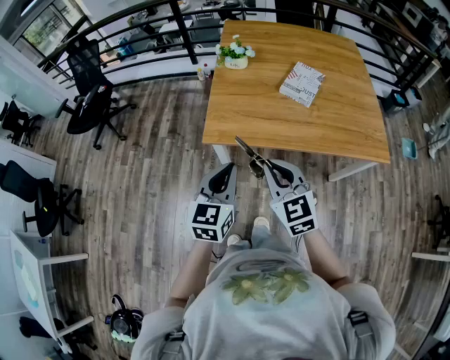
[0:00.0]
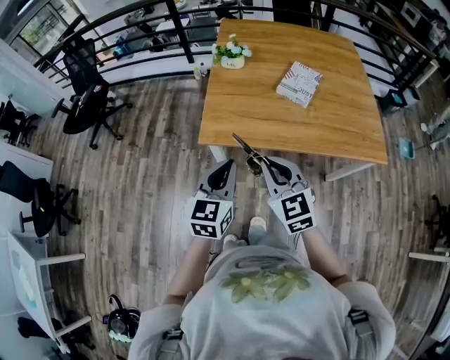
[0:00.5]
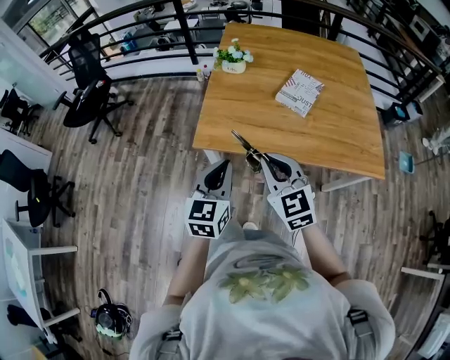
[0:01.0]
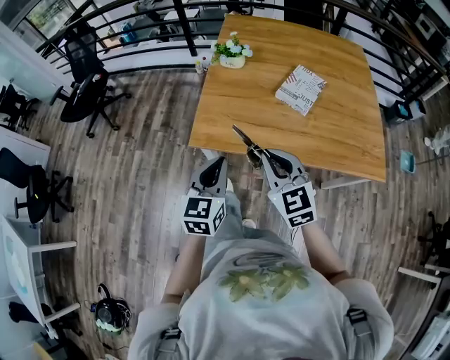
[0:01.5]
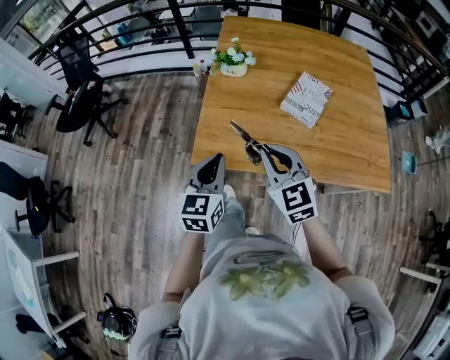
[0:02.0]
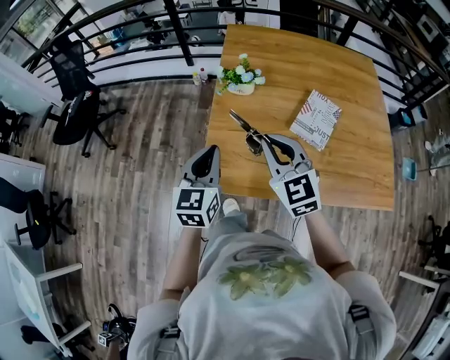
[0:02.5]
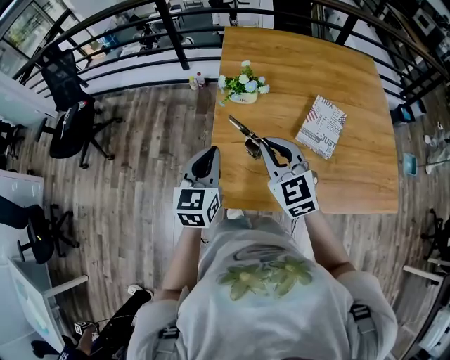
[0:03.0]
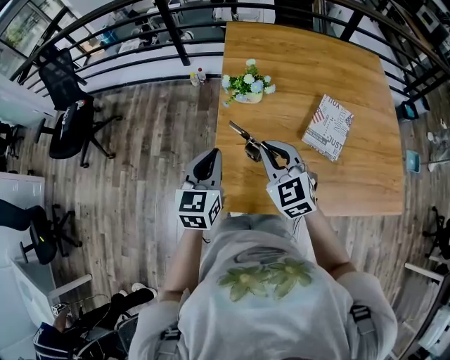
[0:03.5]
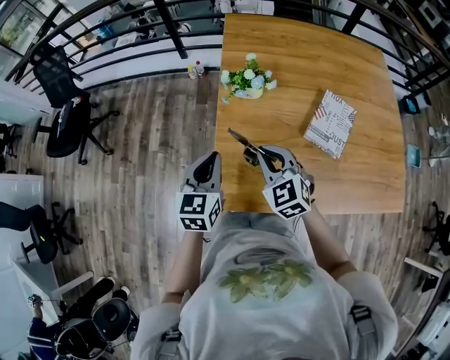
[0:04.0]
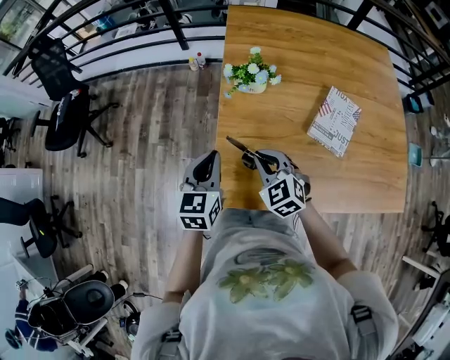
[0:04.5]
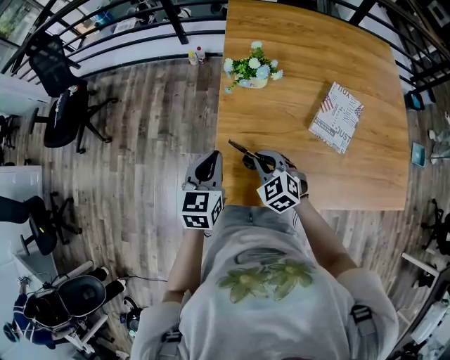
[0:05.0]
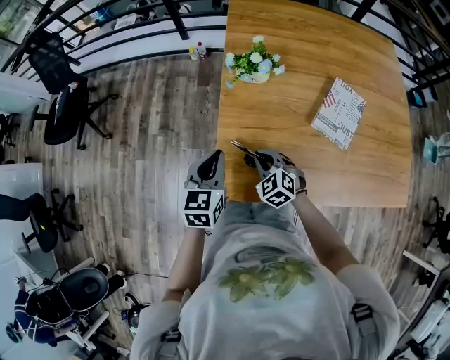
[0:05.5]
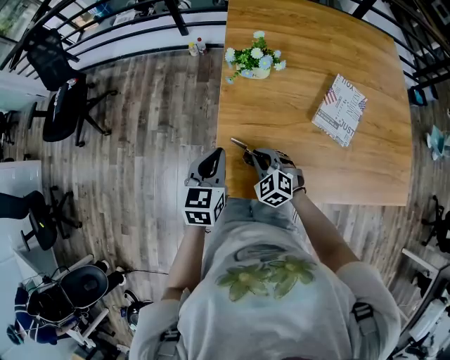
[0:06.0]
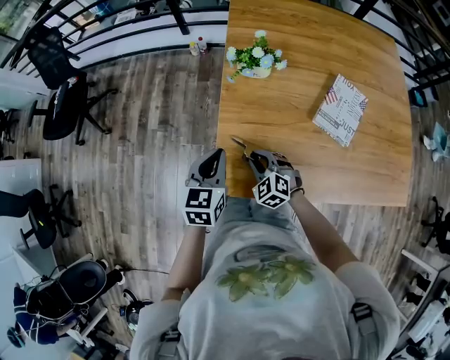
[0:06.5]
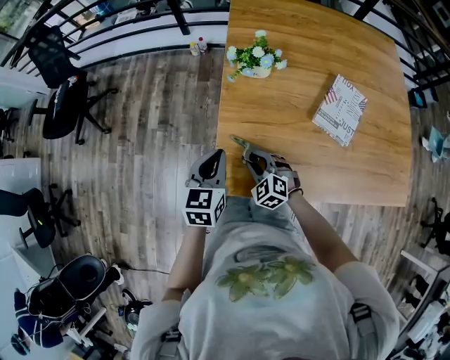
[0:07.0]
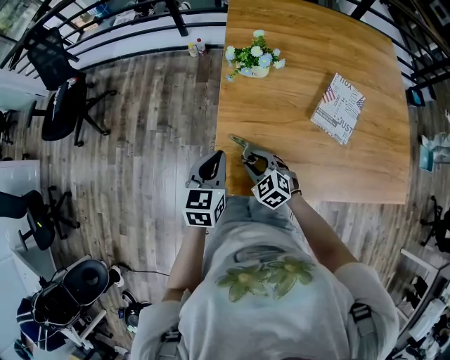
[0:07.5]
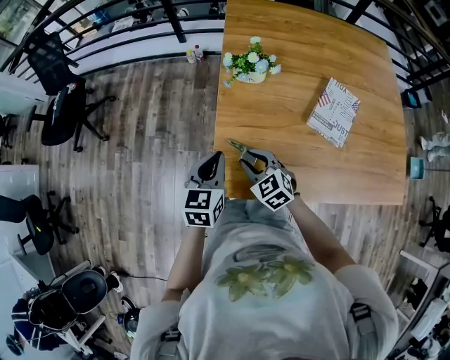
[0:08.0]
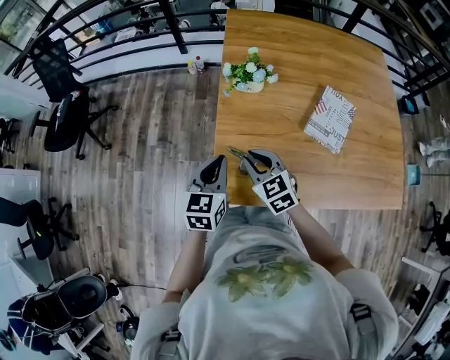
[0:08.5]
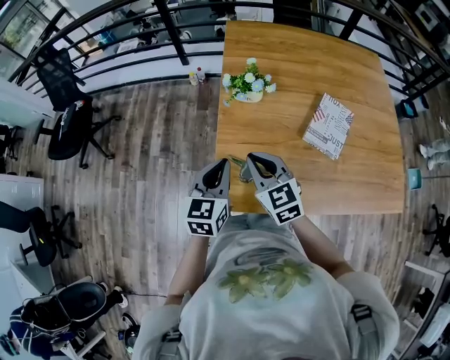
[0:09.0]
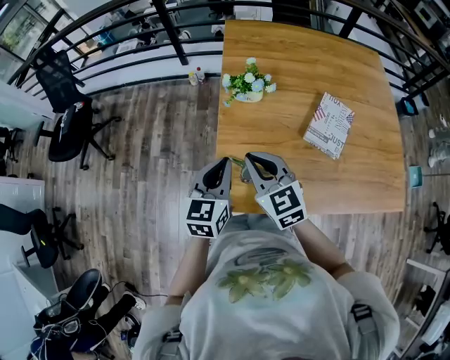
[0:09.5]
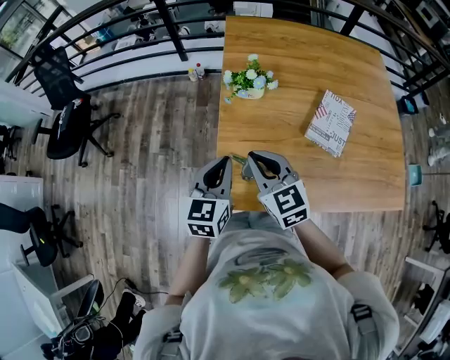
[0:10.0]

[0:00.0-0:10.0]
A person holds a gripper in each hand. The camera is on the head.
0:00.0 to 0:02.0: Both grippers travel together forward, some 15 cm.
0:02.0 to 0:04.0: The right gripper moves forward and downward, some 20 cm. Meanwhile the left gripper travels forward by some 20 cm.
0:04.0 to 0:06.0: The right gripper travels downward by about 15 cm. The left gripper goes roughly 5 cm downward.
0:06.0 to 0:08.0: The right gripper shifts roughly 5 cm upward, and opens up.
0:08.0 to 0:10.0: The right gripper is displaced upward by some 15 cm, rotates roughly 20 degrees, and closes up. The left gripper goes about 5 cm upward.

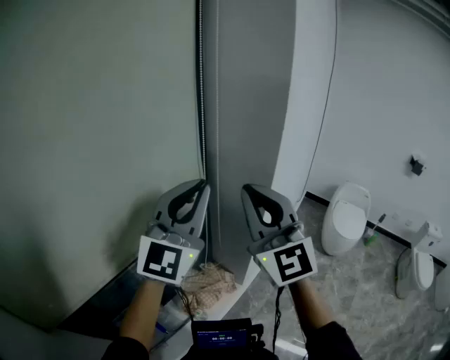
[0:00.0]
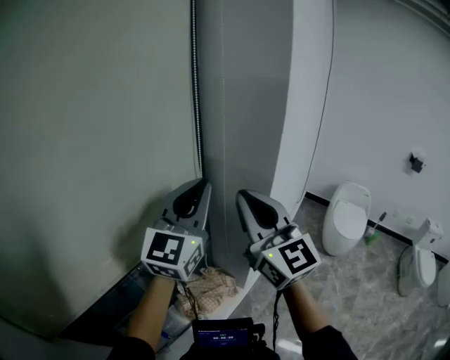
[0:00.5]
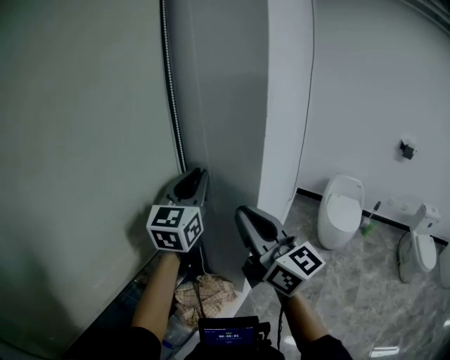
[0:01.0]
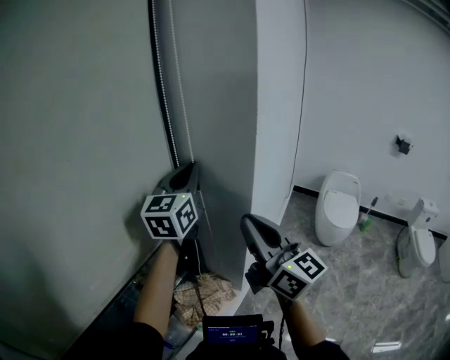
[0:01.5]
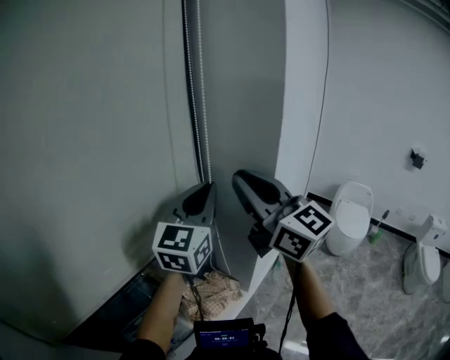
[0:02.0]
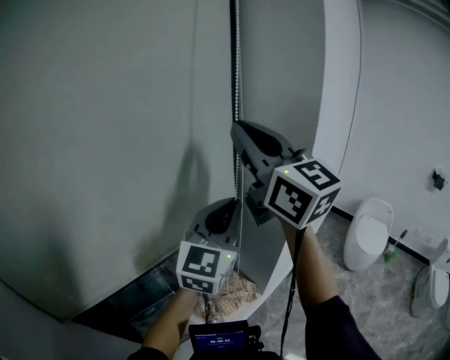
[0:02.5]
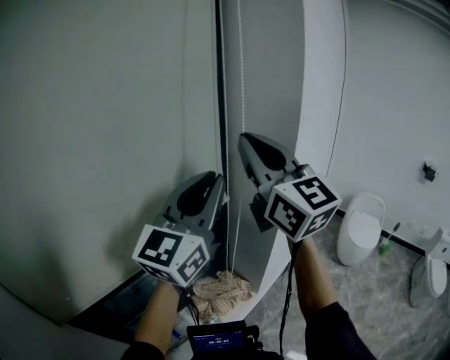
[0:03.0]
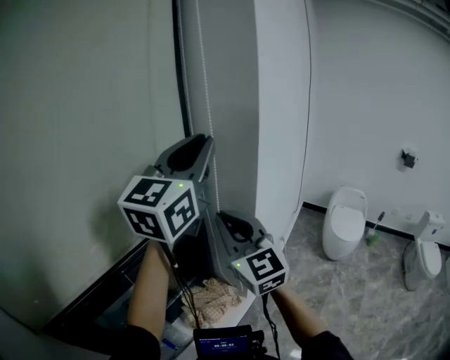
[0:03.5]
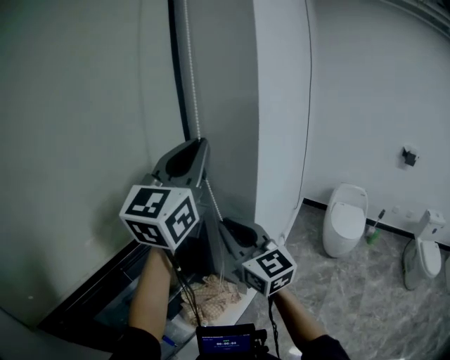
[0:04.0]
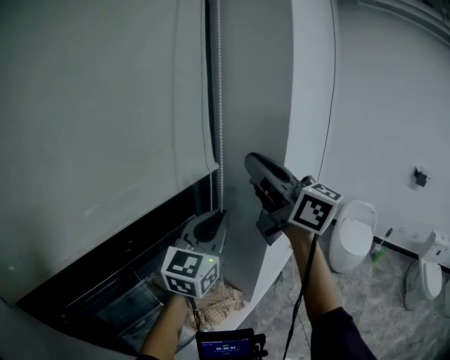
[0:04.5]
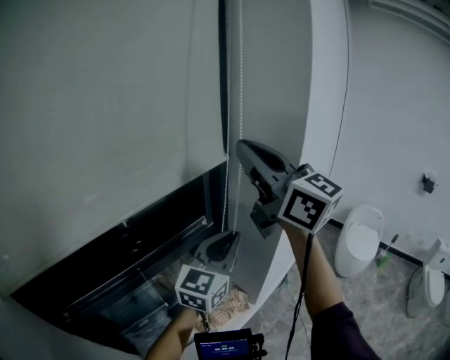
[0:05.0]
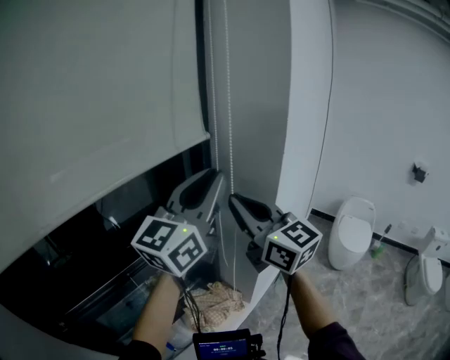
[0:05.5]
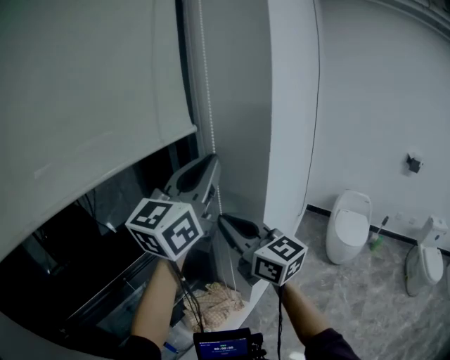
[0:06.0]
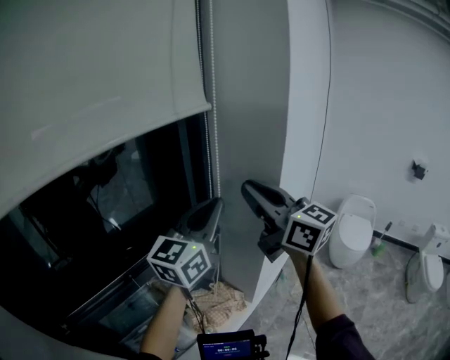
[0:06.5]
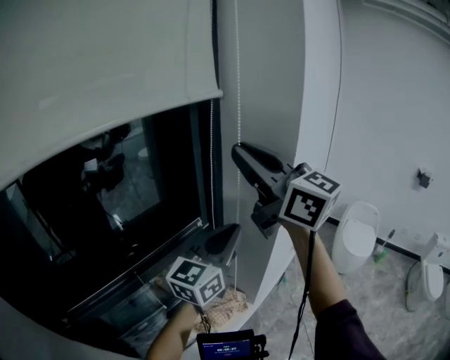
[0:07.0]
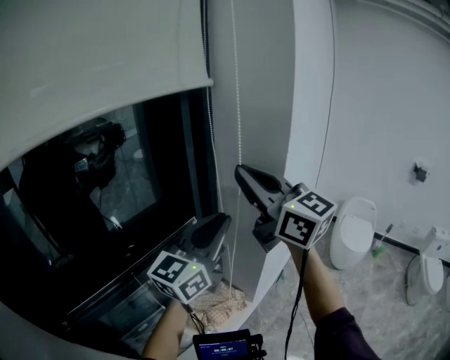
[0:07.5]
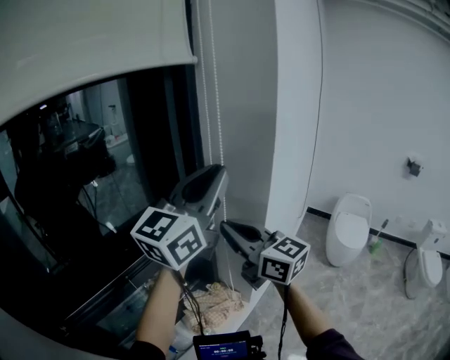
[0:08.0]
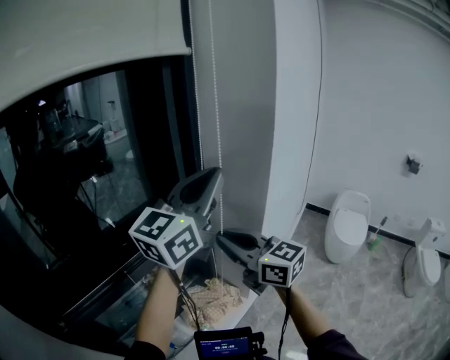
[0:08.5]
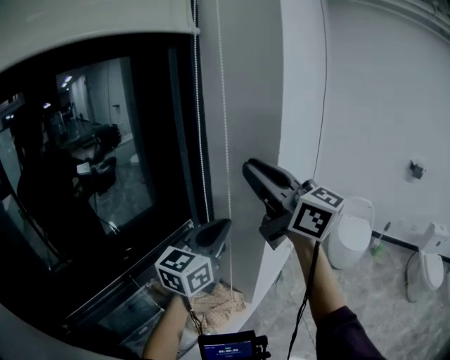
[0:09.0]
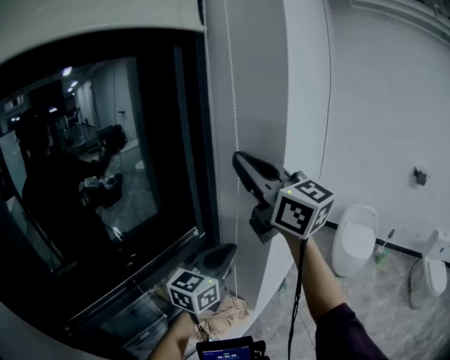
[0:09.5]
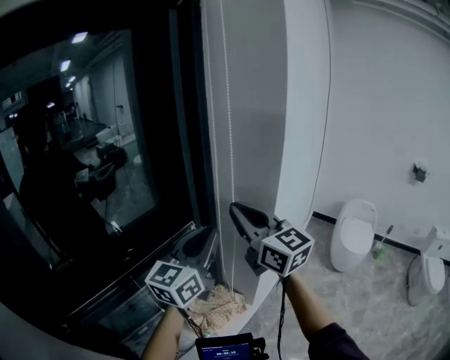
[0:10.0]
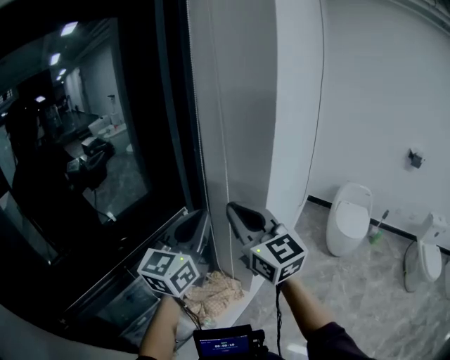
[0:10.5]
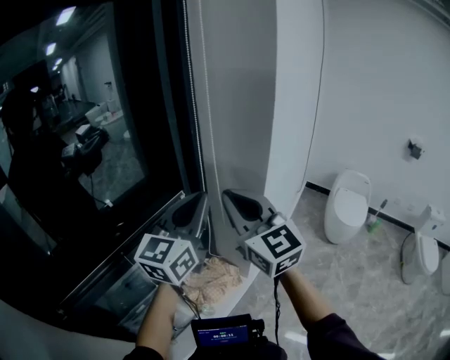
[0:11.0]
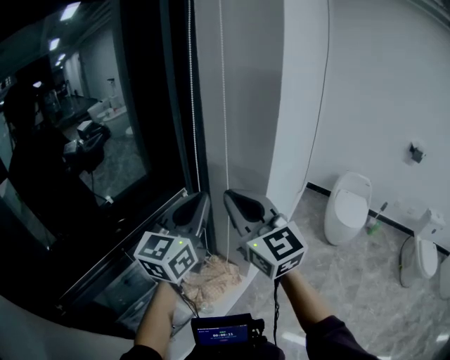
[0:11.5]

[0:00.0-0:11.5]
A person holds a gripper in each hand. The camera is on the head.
0:00.0 to 0:02.0: The left gripper heads forward, covering approximately 10 cm. Meanwhile the right gripper reaches approximately 5 cm downward, then returns, and swivels approximately 30 degrees.
0:02.0 to 0:04.0: The left gripper travels upward and backward by about 15 cm. The right gripper shifts approximately 10 cm downward.
0:04.0 to 0:06.0: The right gripper goes upward and returns, roughly 20 cm each way. Meanwhile the left gripper reaches approximately 20 cm downward, then returns.
0:06.0 to 0:07.5: The right gripper travels upward by roughly 10 cm. The left gripper shifts approximately 15 cm downward.
0:07.5 to 0:09.5: The right gripper reaches about 15 cm downward, then returns. The left gripper heads downward, covering approximately 10 cm.
0:09.5 to 0:11.5: The right gripper goes approximately 20 cm downward. The left gripper moves upward, approximately 5 cm.

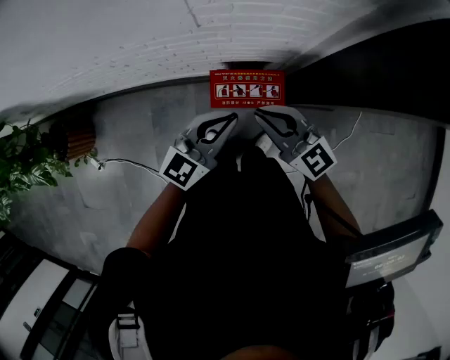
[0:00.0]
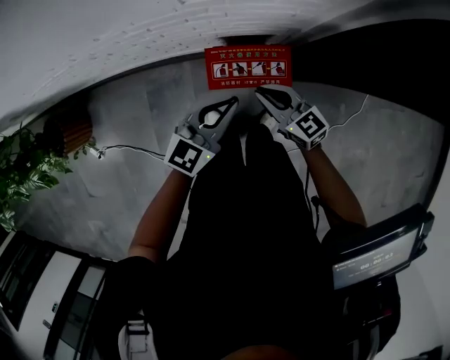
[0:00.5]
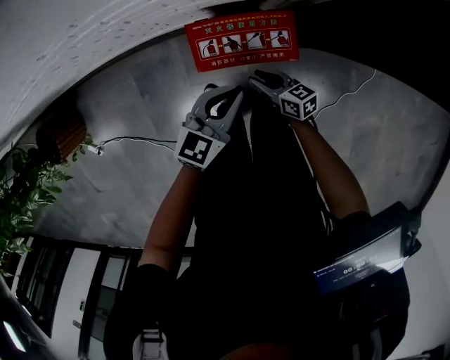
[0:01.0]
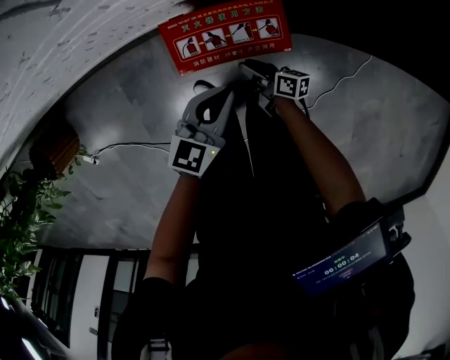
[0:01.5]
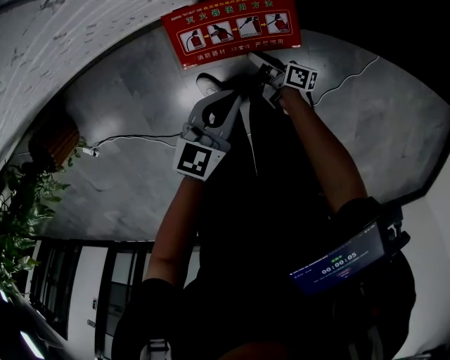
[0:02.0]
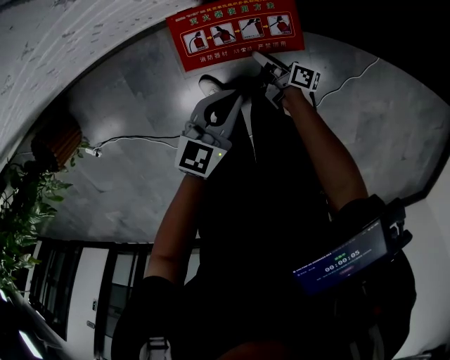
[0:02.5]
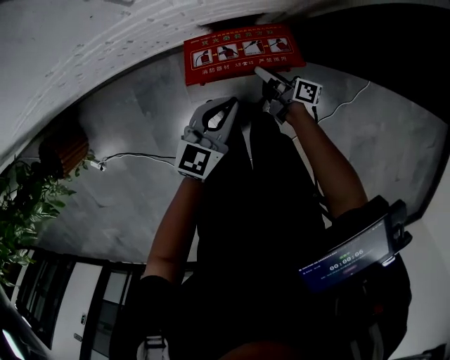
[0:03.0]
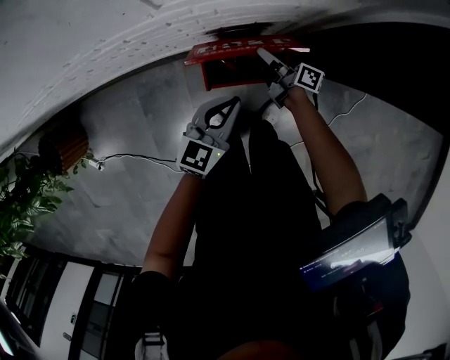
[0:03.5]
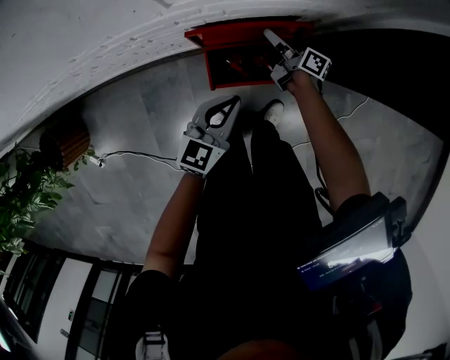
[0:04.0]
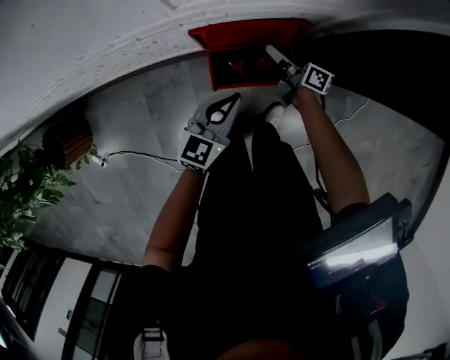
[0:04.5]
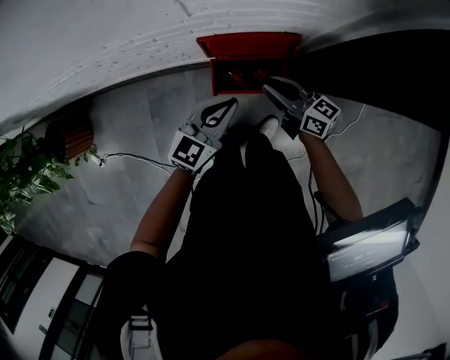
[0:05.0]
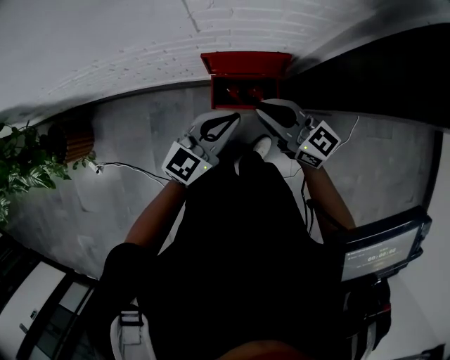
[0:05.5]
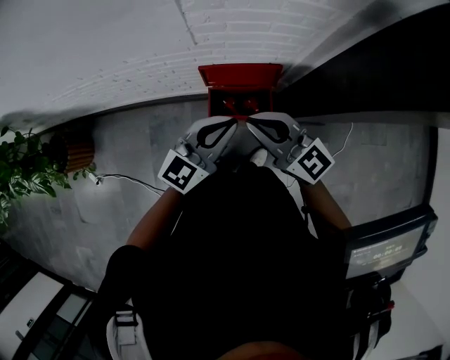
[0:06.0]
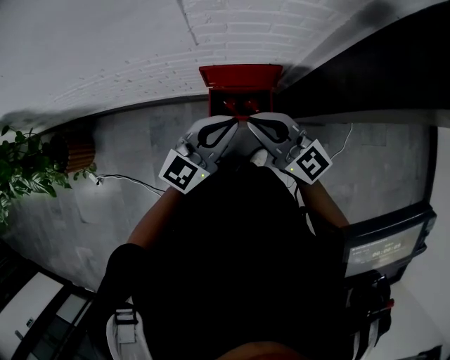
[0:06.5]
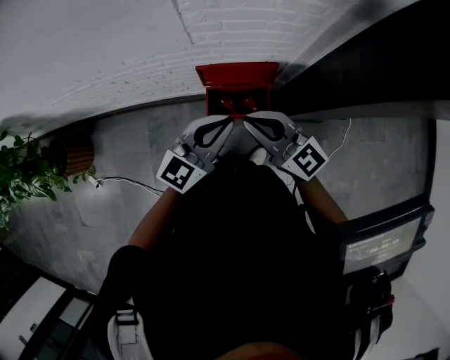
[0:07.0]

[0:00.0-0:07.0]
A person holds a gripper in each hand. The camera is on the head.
0:00.0 to 0:02.0: The left gripper travels downward by roughly 30 cm, and turns by roughly 20 degrees. The right gripper shifts approximately 50 cm downward, rolls clockwise, seen from behind, by approximately 80 degrees, and opens its fingers.
0:02.0 to 0:03.5: The left gripper travels upward and forward by roughly 10 cm. Meanwhile the right gripper shifts approximately 20 cm upward and forward.
0:03.5 to 0:05.0: The right gripper moves upward, roughly 20 cm, and turns by roughly 40 degrees. Meanwhile the left gripper goes some 10 cm upward.
0:05.0 to 0:07.0: The right gripper is displaced upward and backward by some 25 cm, and turns by some 30 degrees. The left gripper is displaced upward by approximately 15 cm.
